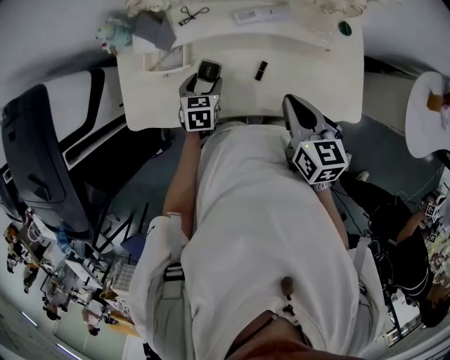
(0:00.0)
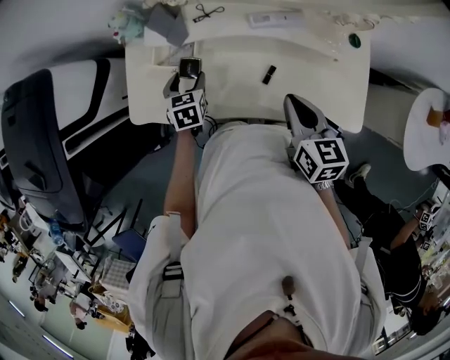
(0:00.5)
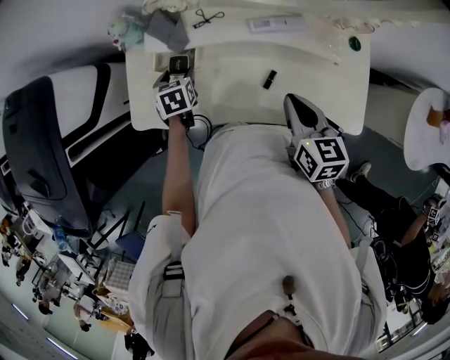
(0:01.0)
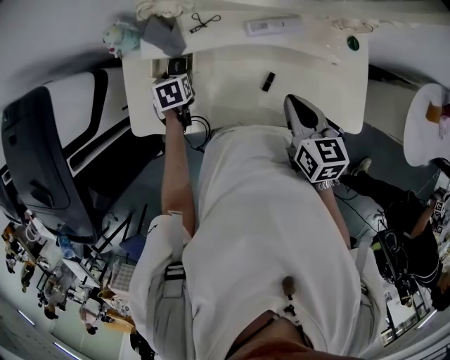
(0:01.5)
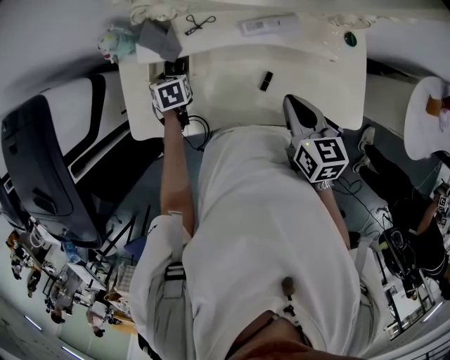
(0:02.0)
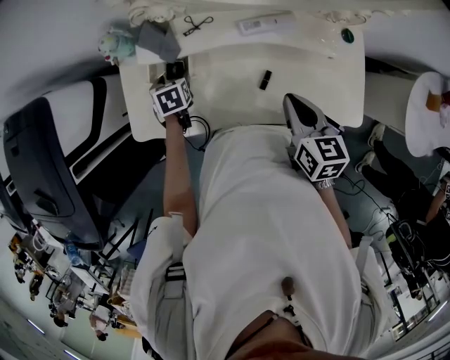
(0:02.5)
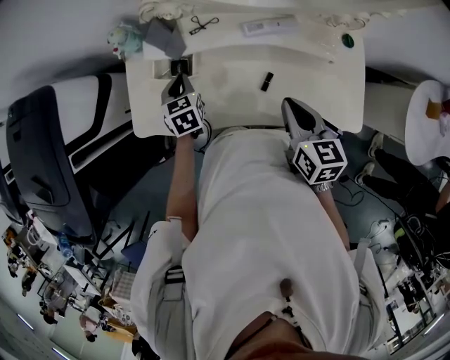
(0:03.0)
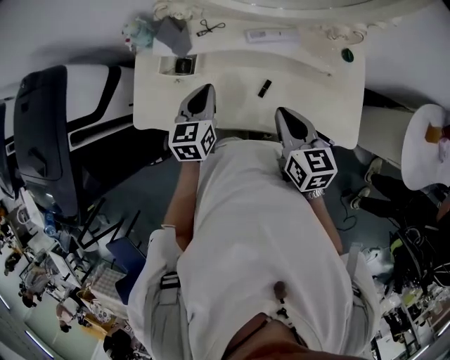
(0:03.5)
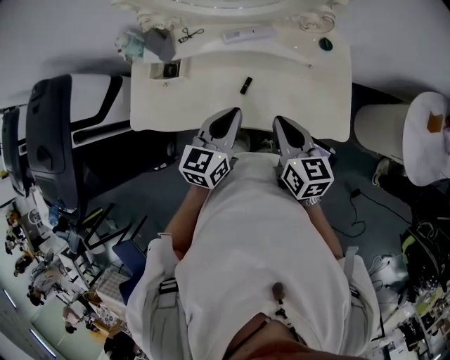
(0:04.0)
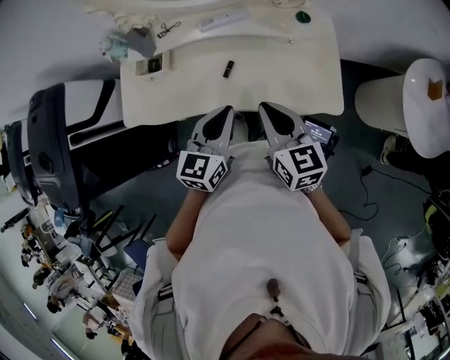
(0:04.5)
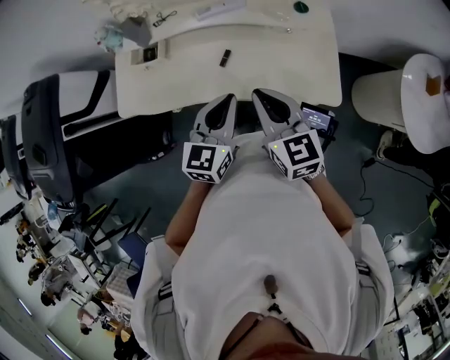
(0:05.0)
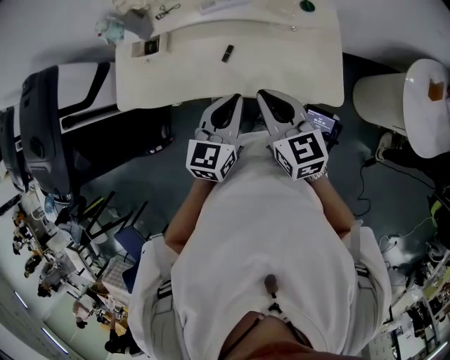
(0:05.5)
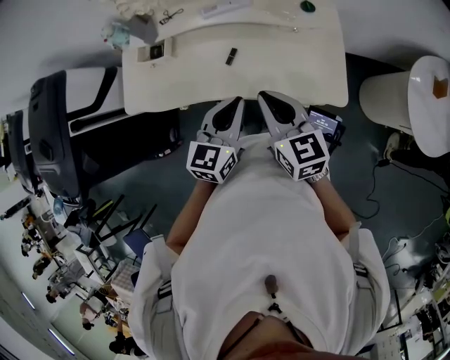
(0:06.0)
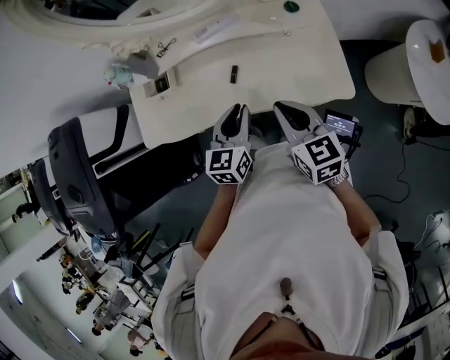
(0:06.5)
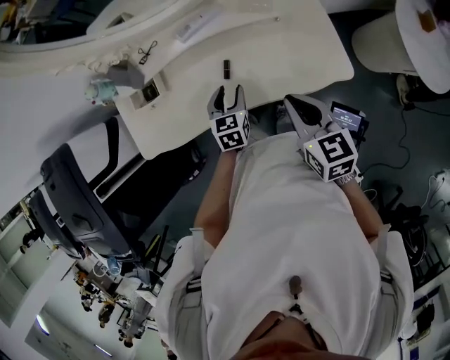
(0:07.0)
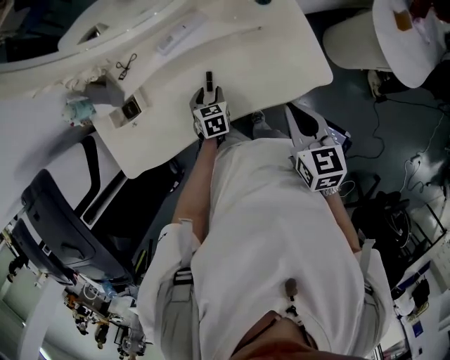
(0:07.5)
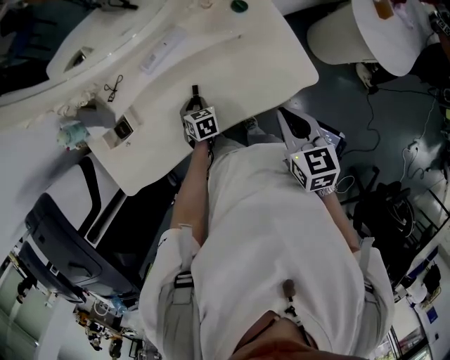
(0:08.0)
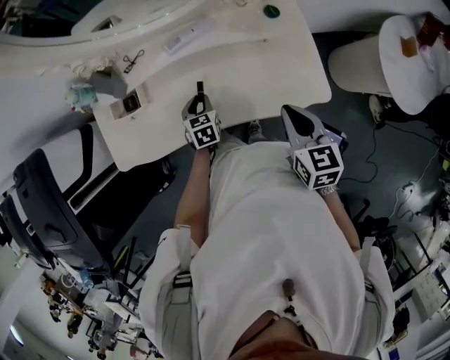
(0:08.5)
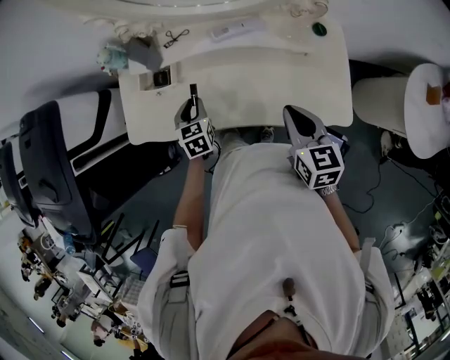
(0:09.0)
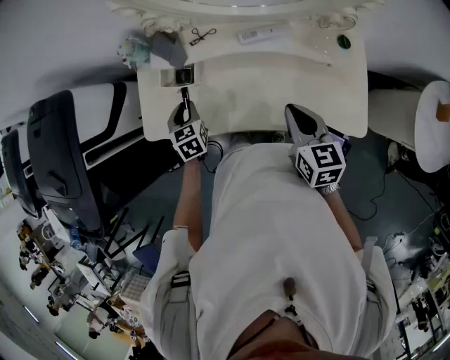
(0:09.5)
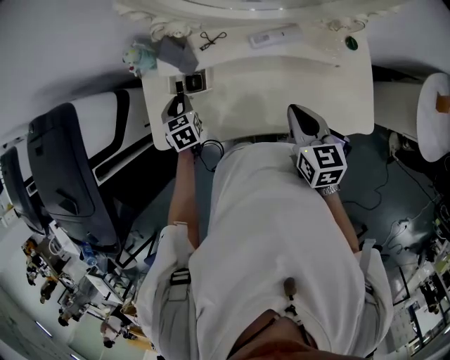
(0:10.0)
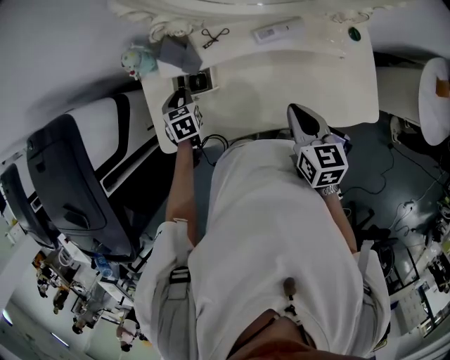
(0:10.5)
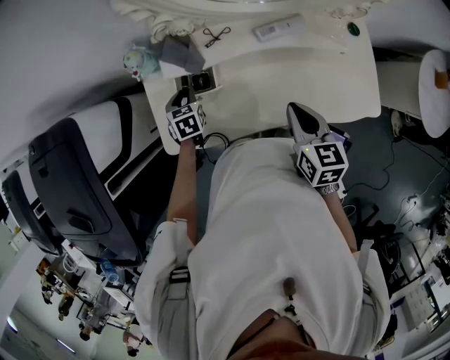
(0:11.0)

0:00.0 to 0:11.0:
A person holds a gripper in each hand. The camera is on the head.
0:00.0 to 0:02.0: The left gripper moves to the left and forward, about 15 cm, and rotates some 20 degrees. The right gripper moves roughly 5 cm.
0:02.0 to 0:03.5: The right gripper is displaced backward by approximately 5 cm. The left gripper moves upward, backward and to the right, approximately 25 cm, tilts its fingers approximately 40 degrees upward, and closes.
0:03.5 to 0:05.5: The right gripper heads backward and to the right, covering about 15 cm; the left gripper travels to the right and backward by approximately 30 cm.
0:05.5 to 0:07.5: The right gripper shifts by some 5 cm, and changes its angle by some 30 degrees. The left gripper shifts approximately 30 cm downward and forward, angles its fingers downward, by some 30 degrees, and opens.
0:07.5 to 0:09.0: The right gripper changes place by approximately 5 cm. The left gripper moves about 20 cm, and rotates roughly 30 degrees.
0:09.0 to 0:11.0: The two grippers go about 20 cm to the left and forward.

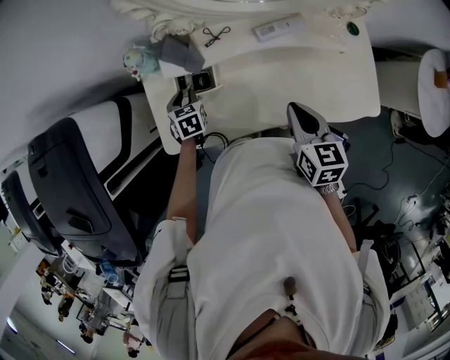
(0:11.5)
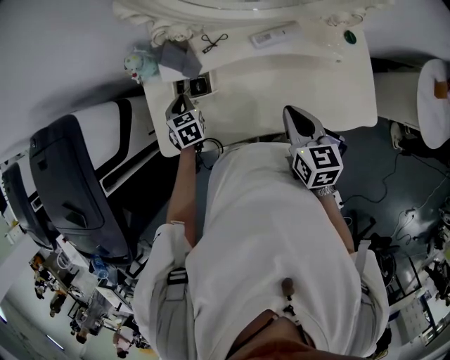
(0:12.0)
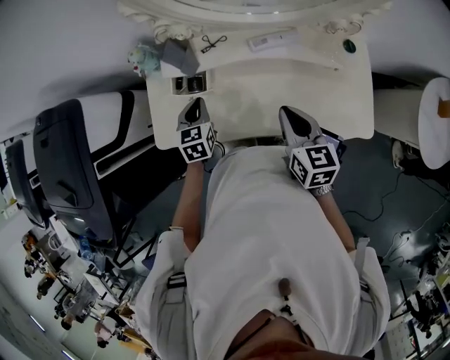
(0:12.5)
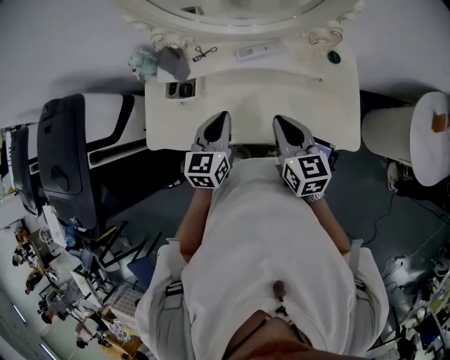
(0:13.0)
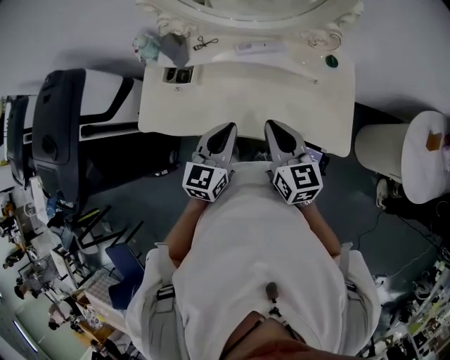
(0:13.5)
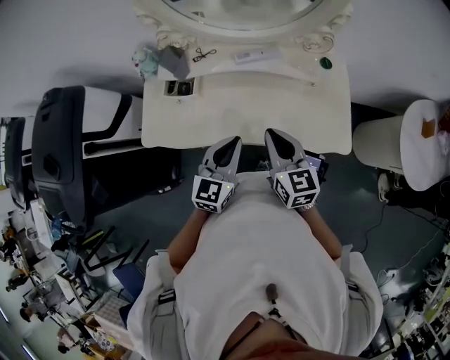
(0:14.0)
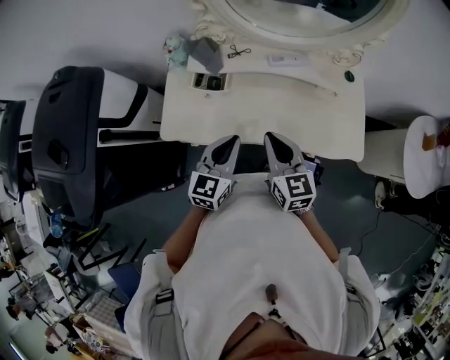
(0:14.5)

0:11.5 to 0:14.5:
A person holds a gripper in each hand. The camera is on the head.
0:11.5 to 0:13.0: The left gripper shifts approximately 35 cm to the right, upward and backward, and angles its fingers upward, by about 30 degrees. Meanwhile the right gripper shifts approximately 10 cm to the right.
0:13.0 to 0:14.5: The left gripper heads backward and to the left, covering about 15 cm; the right gripper goes some 15 cm to the left and backward.

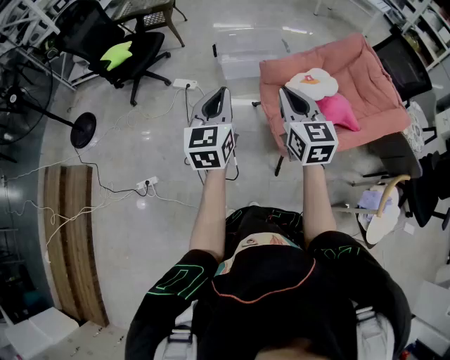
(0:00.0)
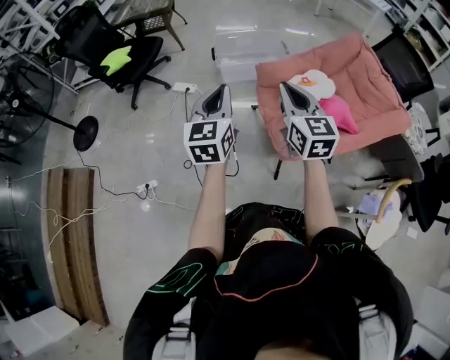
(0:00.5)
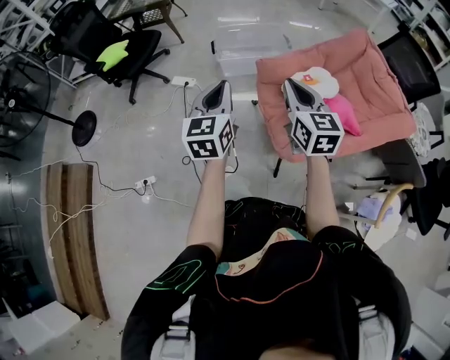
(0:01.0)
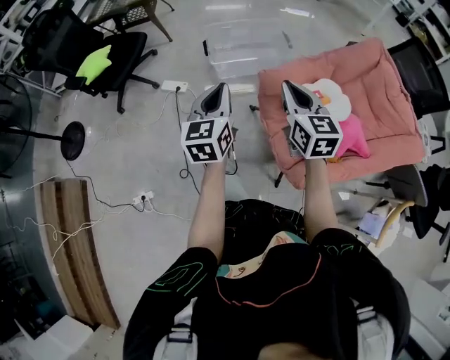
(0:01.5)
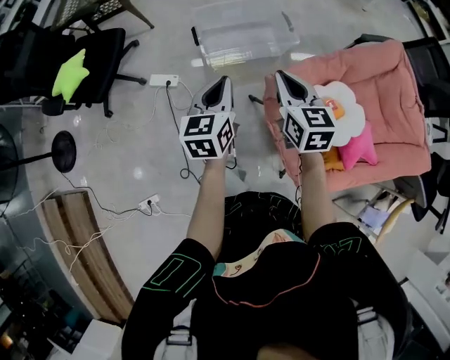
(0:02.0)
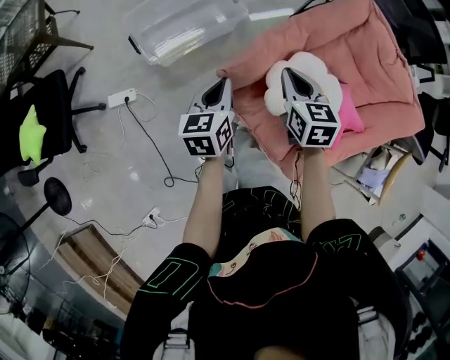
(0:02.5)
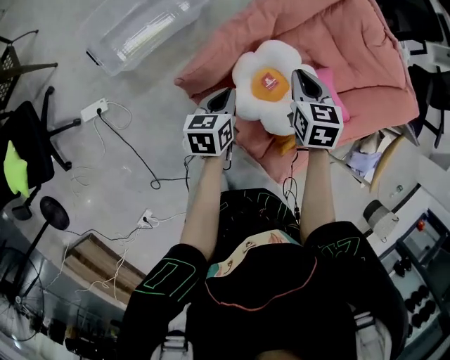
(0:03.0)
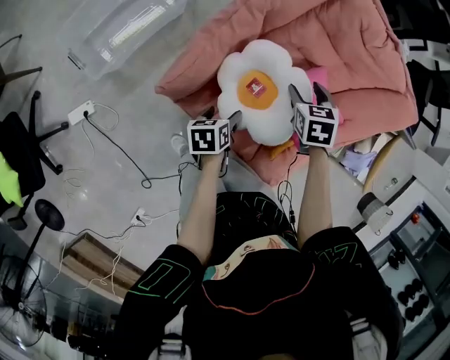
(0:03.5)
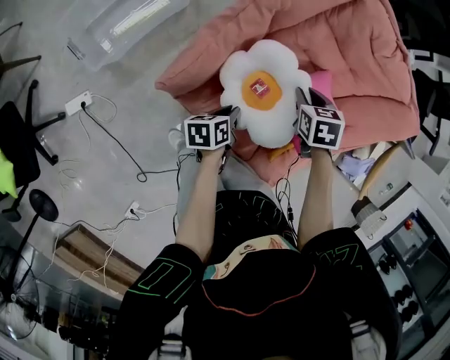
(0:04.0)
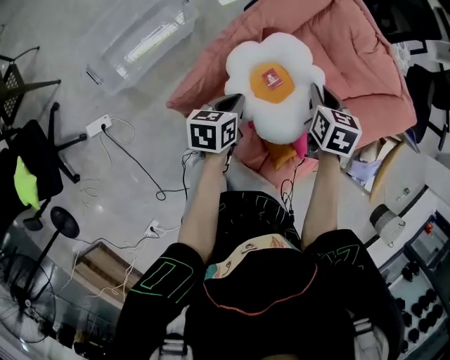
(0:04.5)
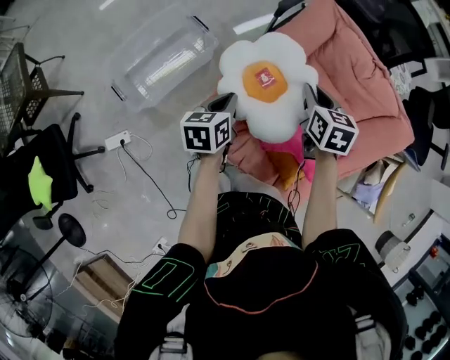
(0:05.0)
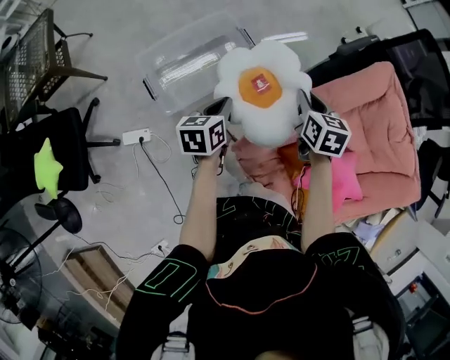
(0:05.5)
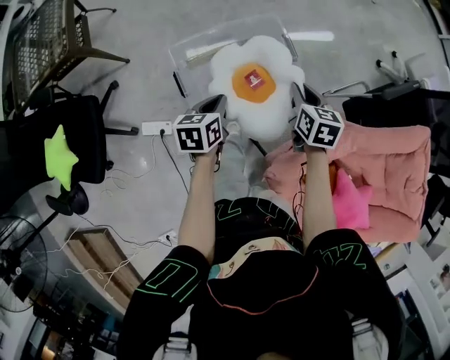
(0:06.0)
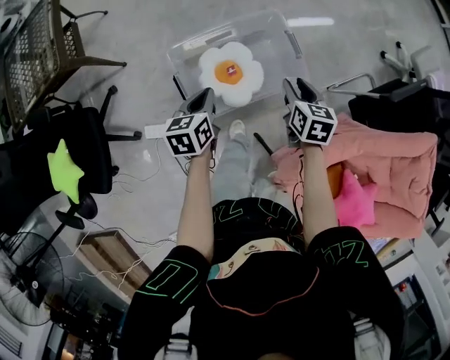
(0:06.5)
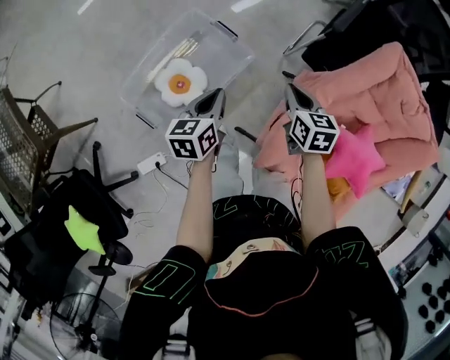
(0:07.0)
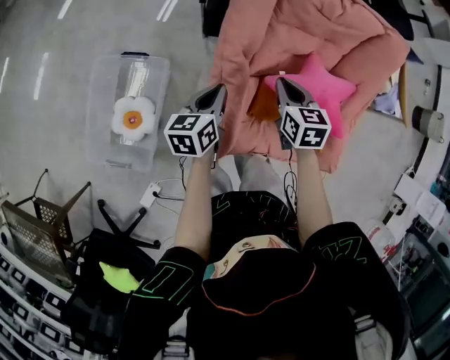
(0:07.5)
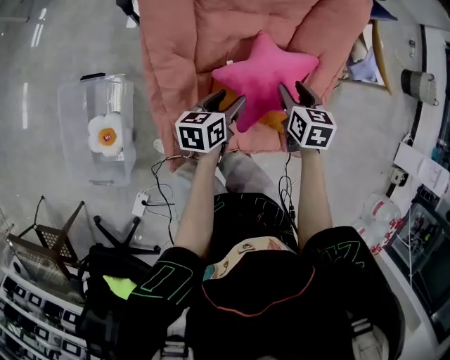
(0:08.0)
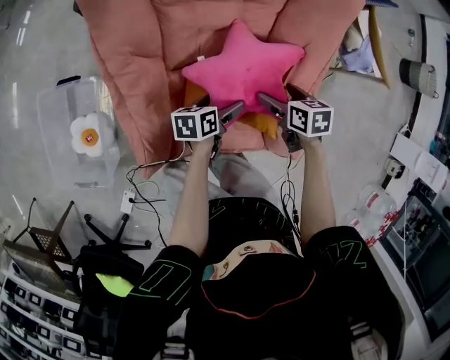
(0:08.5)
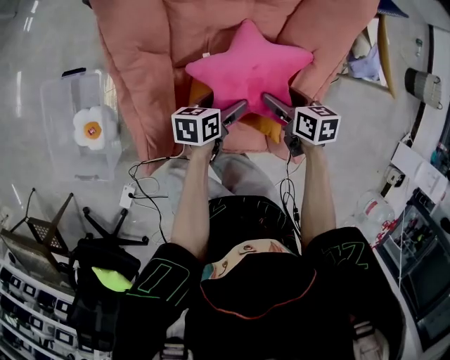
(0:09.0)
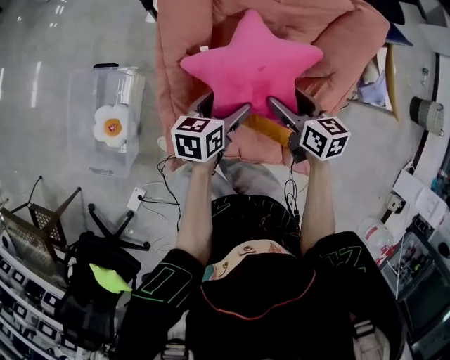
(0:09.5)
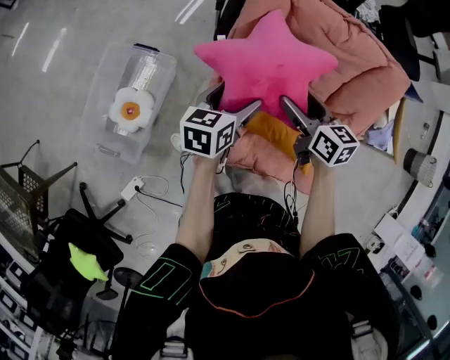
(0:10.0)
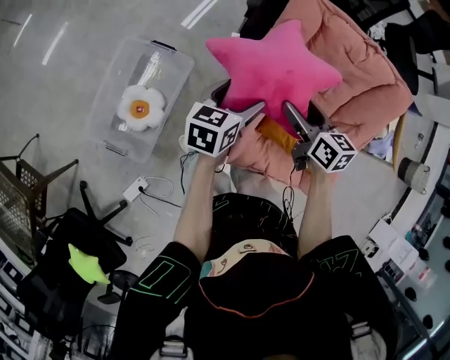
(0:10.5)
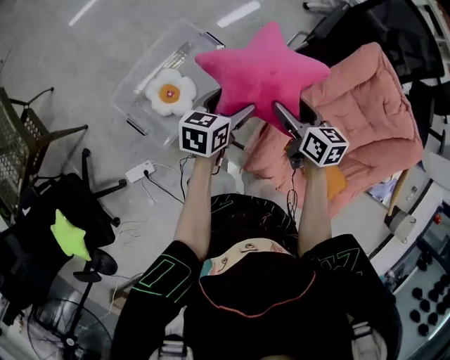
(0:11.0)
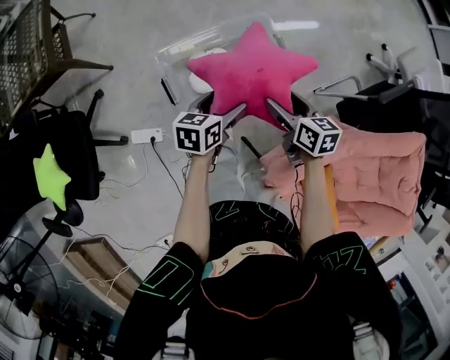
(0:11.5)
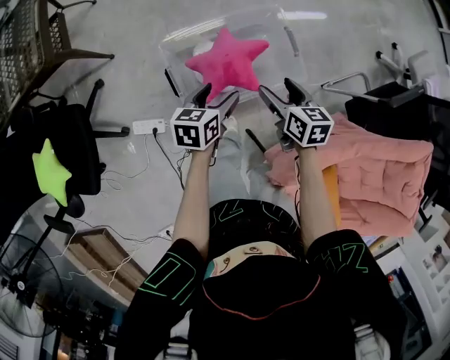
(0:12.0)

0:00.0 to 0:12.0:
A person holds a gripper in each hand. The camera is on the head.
0:00.0 to 0:02.0: The two grippers travel together, forward, approximately 40 cm. The left gripper swivels roughly 20 degrees.
0:02.0 to 0:04.0: The left gripper ends up roughly 50 cm from where it was, changes its angle by roughly 60 degrees, and opens, then closes again, while the right gripper ends up some 50 cm from where it was, angles its fingers downward, by roughly 40 degrees, and opens, then closes once more.
0:04.0 to 0:06.0: The two grippers travel together, some 60 cm. The right gripper swivels approximately 30 degrees; the left gripper rotates roughly 30 degrees.
0:06.0 to 0:08.0: The pair of grippers is taken some 60 cm. The right gripper changes its angle by approximately 60 degrees; the left gripper rotates about 70 degrees, and opens its fingers.
0:08.0 to 0:10.0: The left gripper changes place by roughly 20 cm, while the right gripper ends up about 20 cm from where it was, swivels some 40 degrees, and opens its fingers.
0:10.0 to 0:12.0: The two grippers travel together, approximately 60 cm. The left gripper turns by some 50 degrees; the right gripper rotates about 50 degrees.
